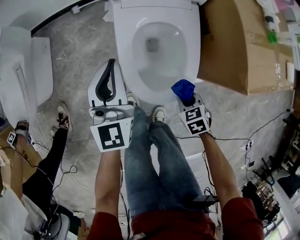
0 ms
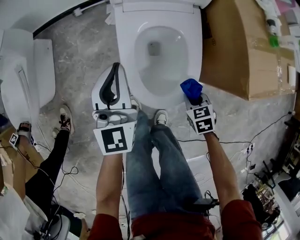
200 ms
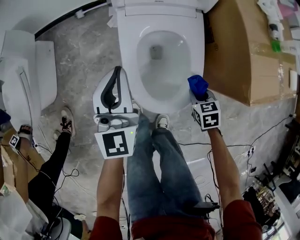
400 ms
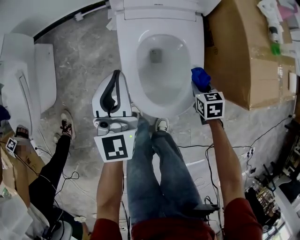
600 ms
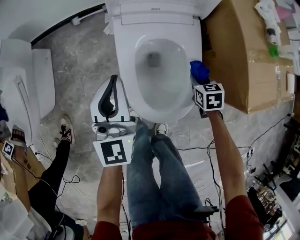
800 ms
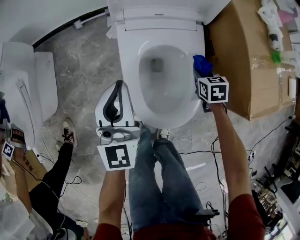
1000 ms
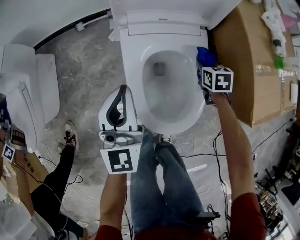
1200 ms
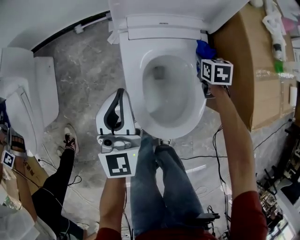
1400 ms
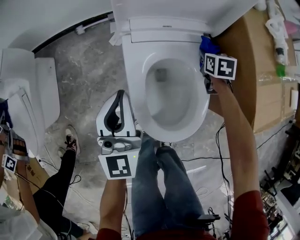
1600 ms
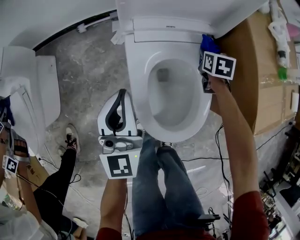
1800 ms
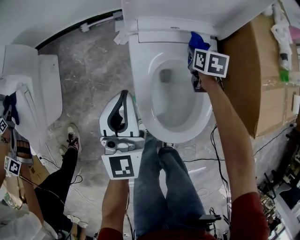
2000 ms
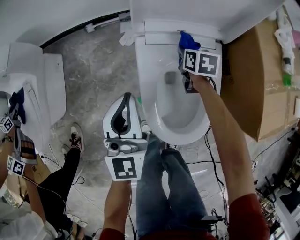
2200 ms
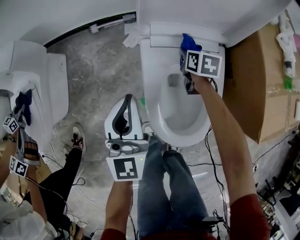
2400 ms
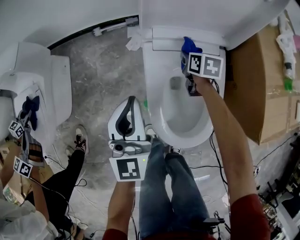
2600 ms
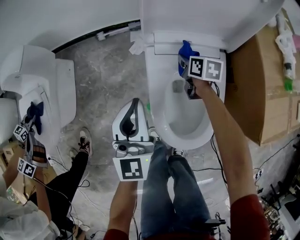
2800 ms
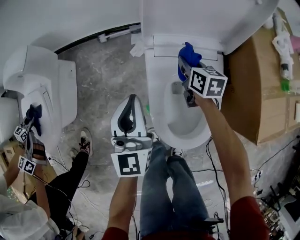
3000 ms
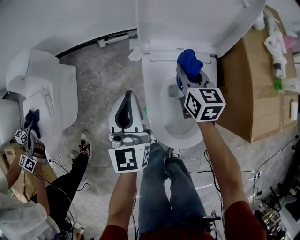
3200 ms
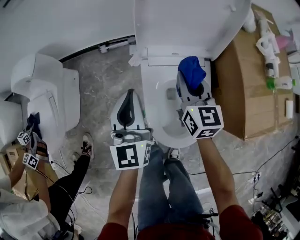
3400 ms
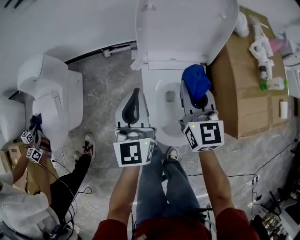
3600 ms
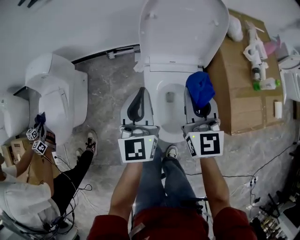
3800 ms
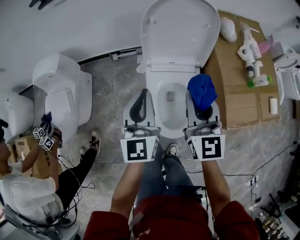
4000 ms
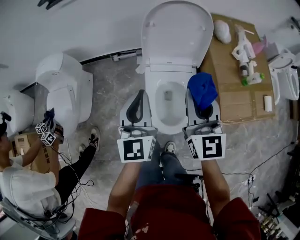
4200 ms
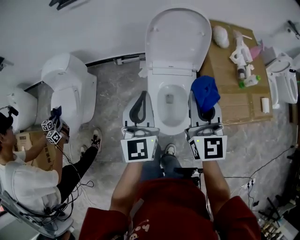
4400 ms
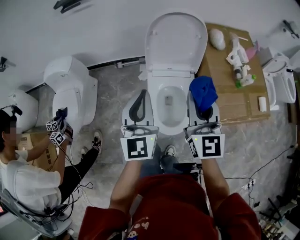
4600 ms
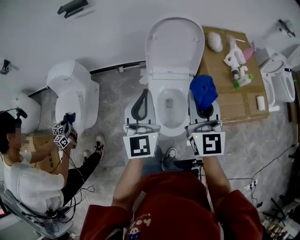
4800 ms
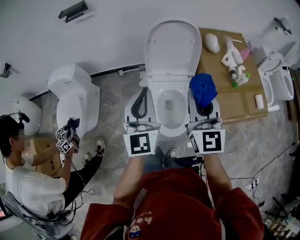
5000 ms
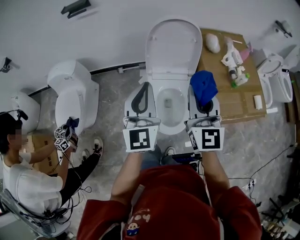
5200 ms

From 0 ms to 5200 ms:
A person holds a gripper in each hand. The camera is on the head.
From 0 ms to 1800 ms: The right gripper heads forward, covering roughly 40 cm, and turns by roughly 30 degrees; the left gripper goes about 10 cm forward.
From 1800 ms to 3400 ms: The left gripper moves upward, approximately 10 cm. The right gripper is displaced upward and to the left by about 30 cm, and angles its fingers upward, by roughly 40 degrees.
From 3400 ms to 5200 ms: The two grippers go approximately 40 cm upward and backward. The right gripper rotates some 30 degrees.

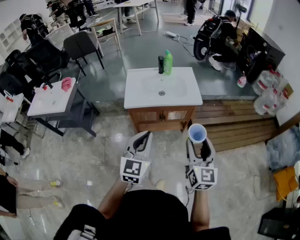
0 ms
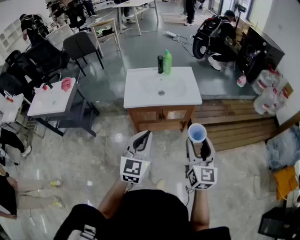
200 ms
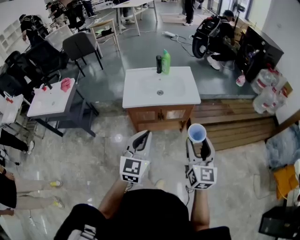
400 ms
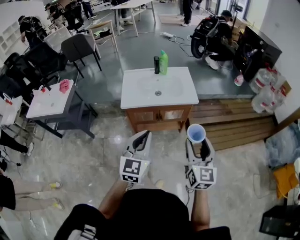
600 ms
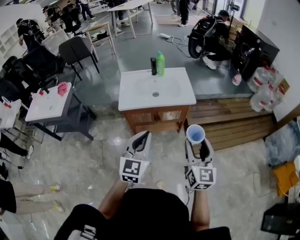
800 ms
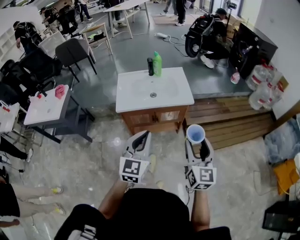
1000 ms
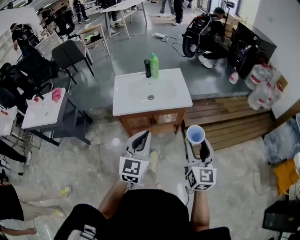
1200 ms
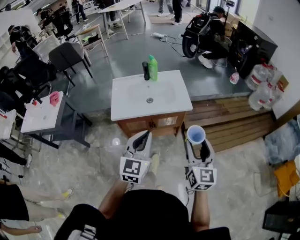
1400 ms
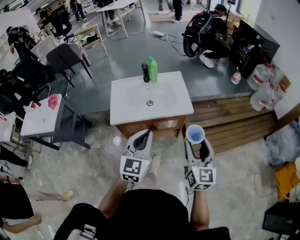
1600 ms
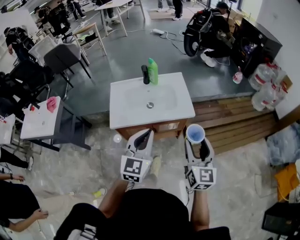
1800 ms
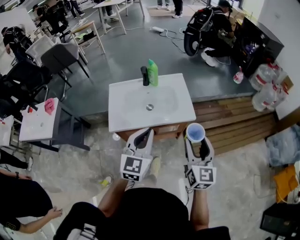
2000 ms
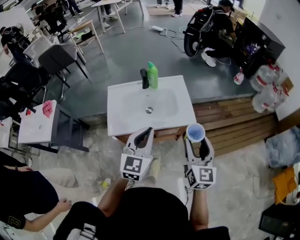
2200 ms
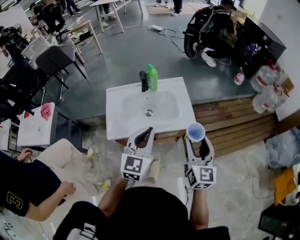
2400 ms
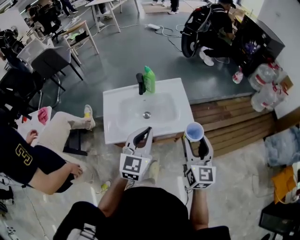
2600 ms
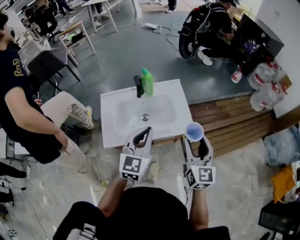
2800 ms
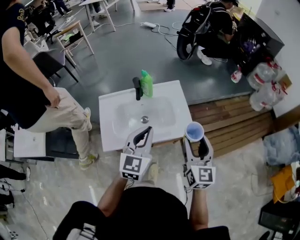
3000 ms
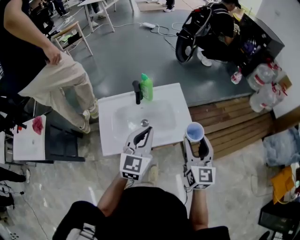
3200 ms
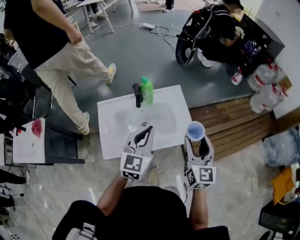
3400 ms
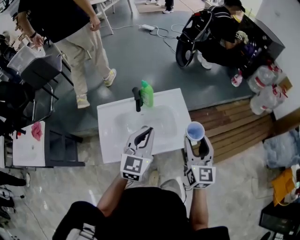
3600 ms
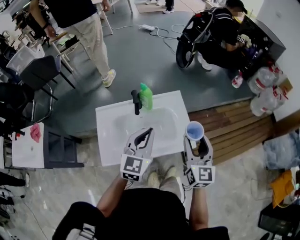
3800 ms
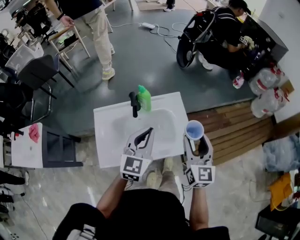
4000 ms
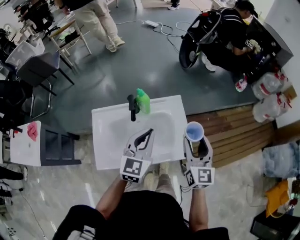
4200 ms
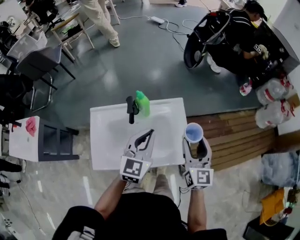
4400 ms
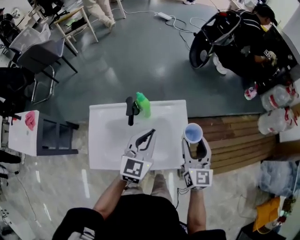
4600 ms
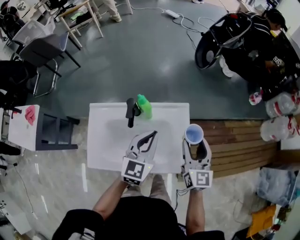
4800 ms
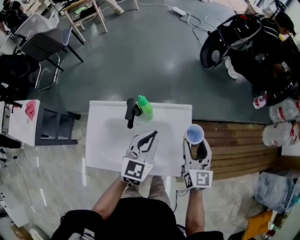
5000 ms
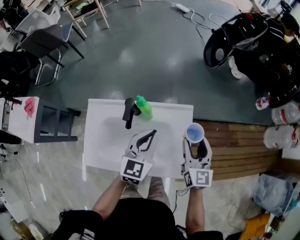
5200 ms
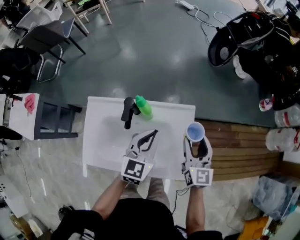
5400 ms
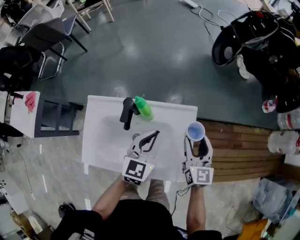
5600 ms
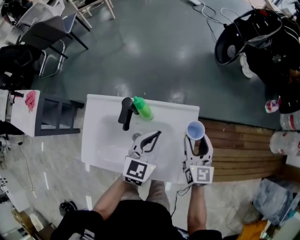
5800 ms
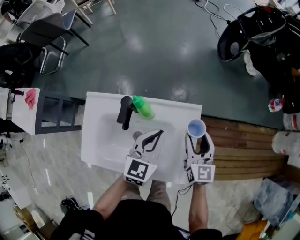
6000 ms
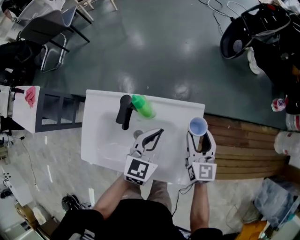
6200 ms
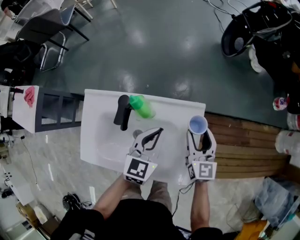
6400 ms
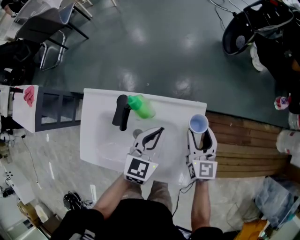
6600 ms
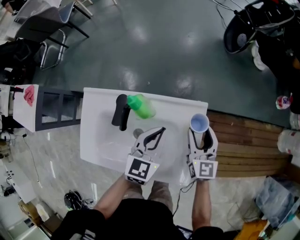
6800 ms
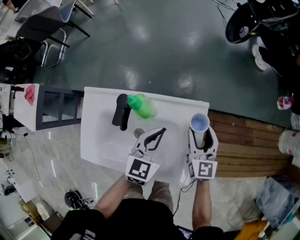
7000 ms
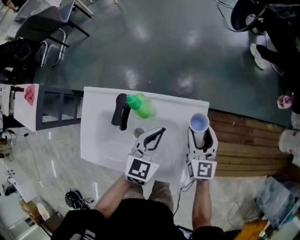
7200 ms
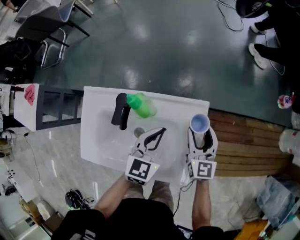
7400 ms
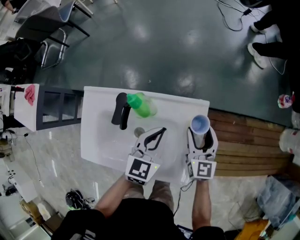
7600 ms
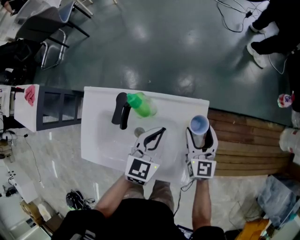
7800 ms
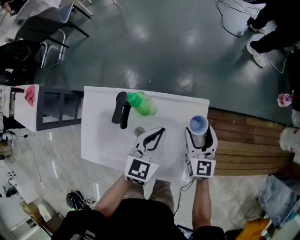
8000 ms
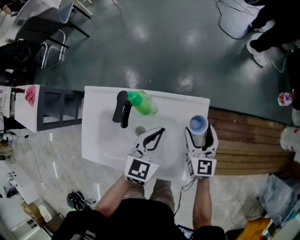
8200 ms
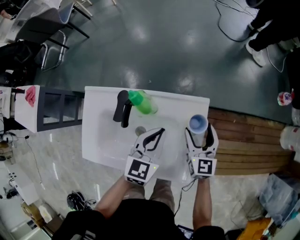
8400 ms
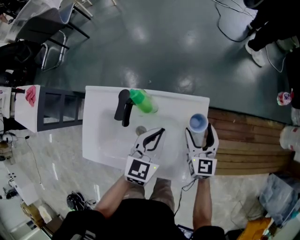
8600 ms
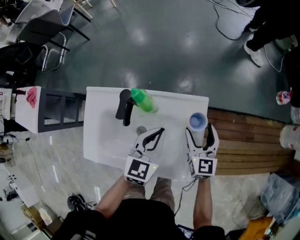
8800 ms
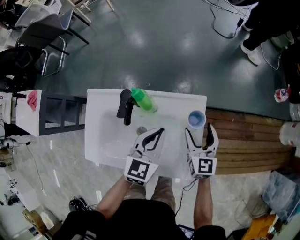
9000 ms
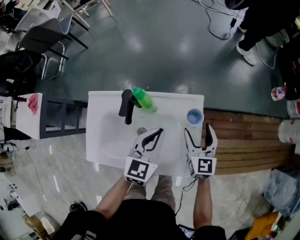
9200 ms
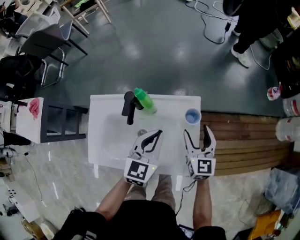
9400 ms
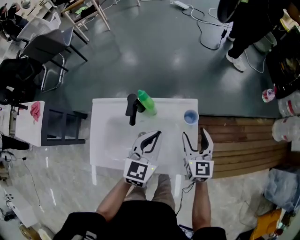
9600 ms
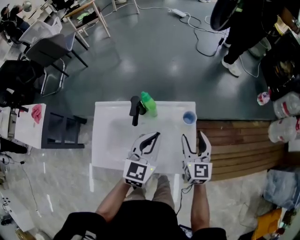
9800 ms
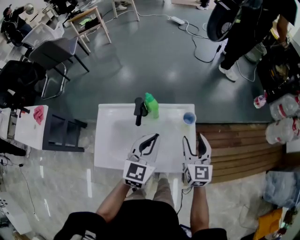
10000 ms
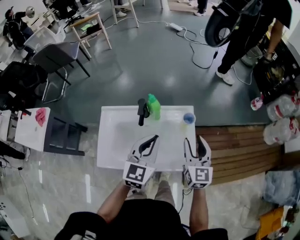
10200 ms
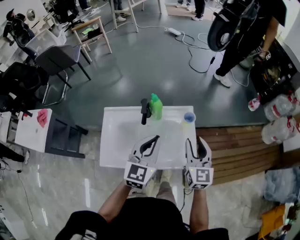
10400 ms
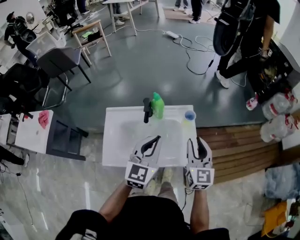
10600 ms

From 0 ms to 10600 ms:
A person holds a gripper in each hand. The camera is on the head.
From 0 ms to 1600 ms: The two grippers go approximately 15 cm forward and to the right.
From 1600 ms to 3000 ms: Both grippers travel together forward, roughly 25 cm.
From 3000 ms to 4600 ms: The grippers both shift forward by approximately 20 cm.
From 4600 ms to 6000 ms: The grippers both shift downward and forward by about 15 cm.
From 6000 ms to 7600 ms: The right gripper shifts approximately 5 cm downward.
From 7600 ms to 9000 ms: The grippers make only small movements.
From 9000 ms to 10600 ms: Both grippers travel together upward and backward, about 25 cm. The right gripper closes; the left gripper rotates approximately 20 degrees.

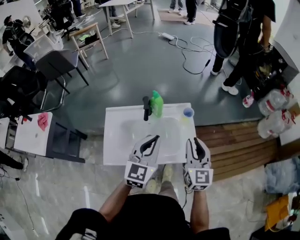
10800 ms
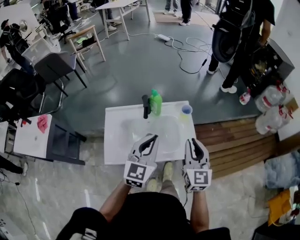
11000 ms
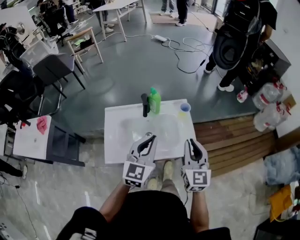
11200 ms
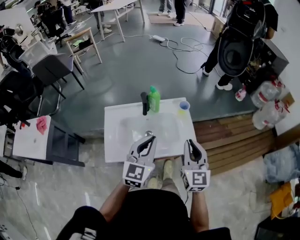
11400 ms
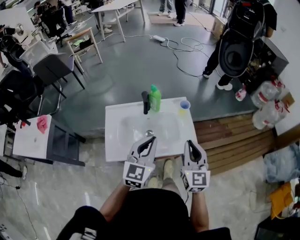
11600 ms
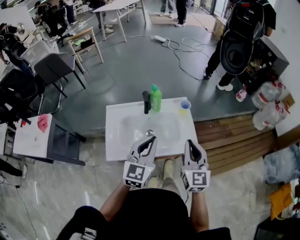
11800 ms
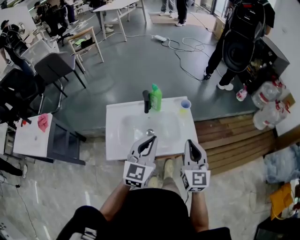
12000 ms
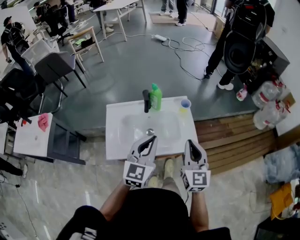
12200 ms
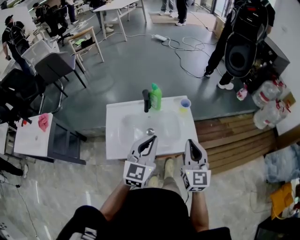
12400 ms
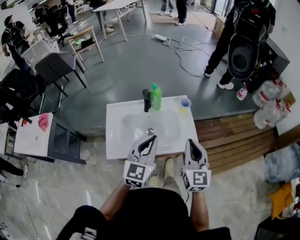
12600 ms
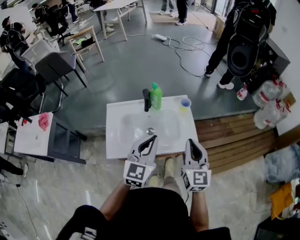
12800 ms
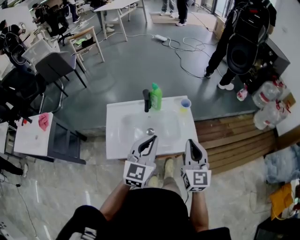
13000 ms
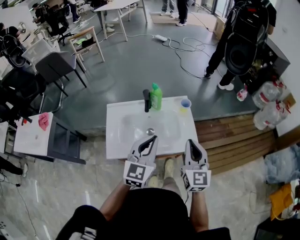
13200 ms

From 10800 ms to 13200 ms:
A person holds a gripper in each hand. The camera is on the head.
From 10800 ms to 12000 ms: Both grippers move backward, some 10 cm.
From 12000 ms to 13200 ms: Both grippers stay put.

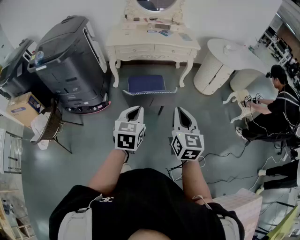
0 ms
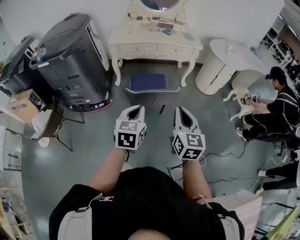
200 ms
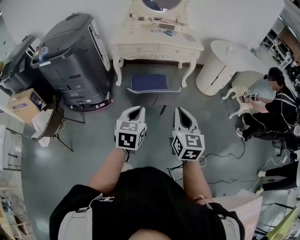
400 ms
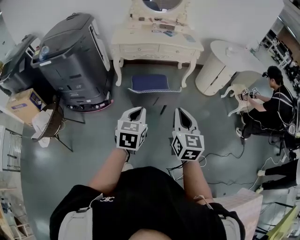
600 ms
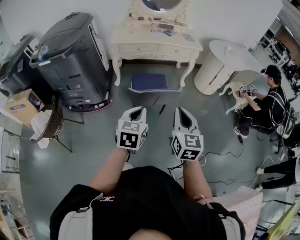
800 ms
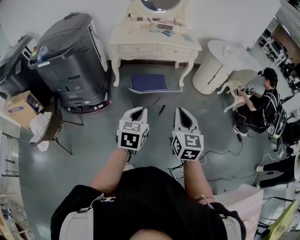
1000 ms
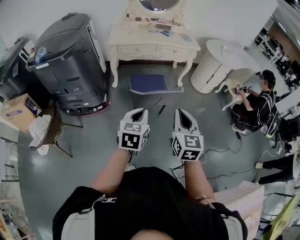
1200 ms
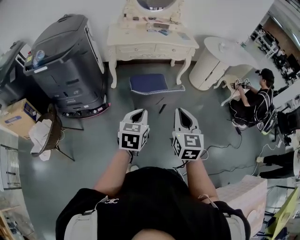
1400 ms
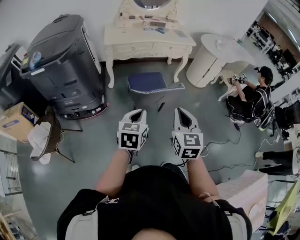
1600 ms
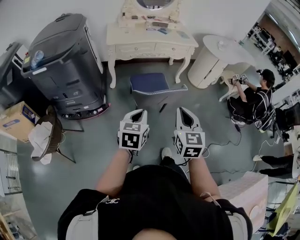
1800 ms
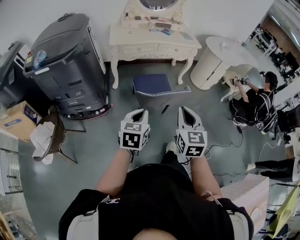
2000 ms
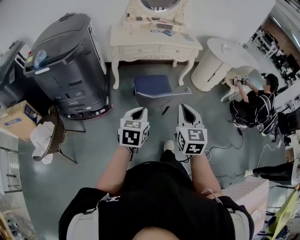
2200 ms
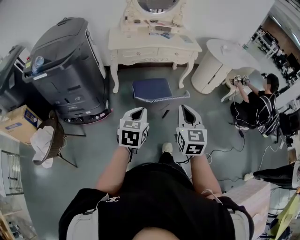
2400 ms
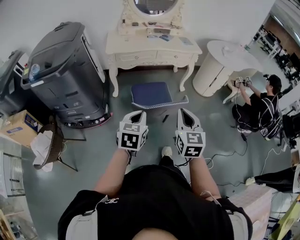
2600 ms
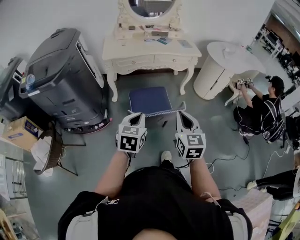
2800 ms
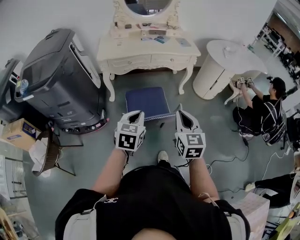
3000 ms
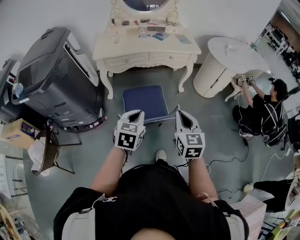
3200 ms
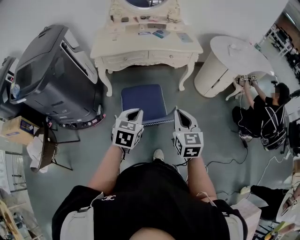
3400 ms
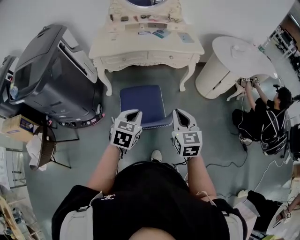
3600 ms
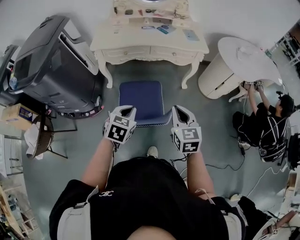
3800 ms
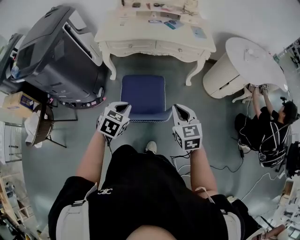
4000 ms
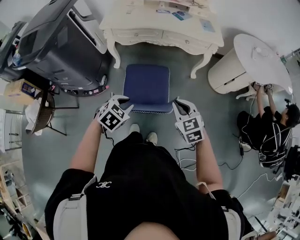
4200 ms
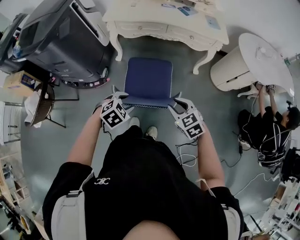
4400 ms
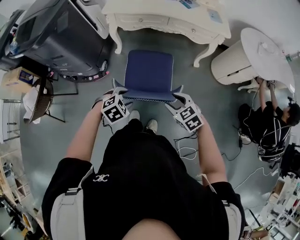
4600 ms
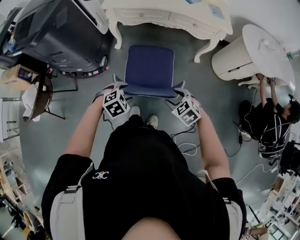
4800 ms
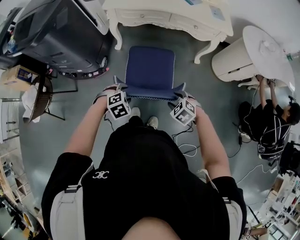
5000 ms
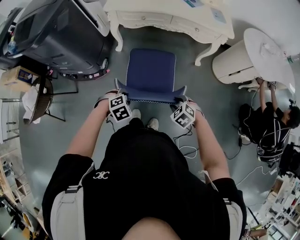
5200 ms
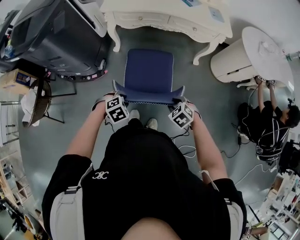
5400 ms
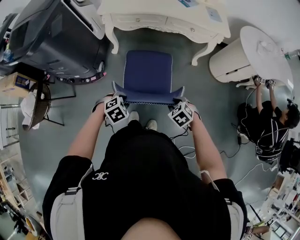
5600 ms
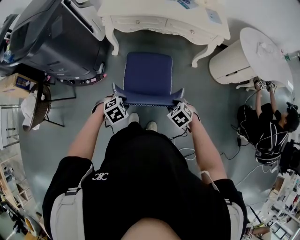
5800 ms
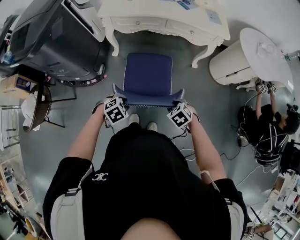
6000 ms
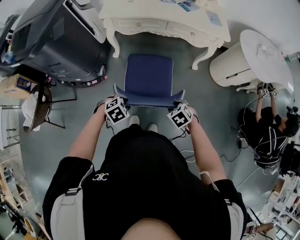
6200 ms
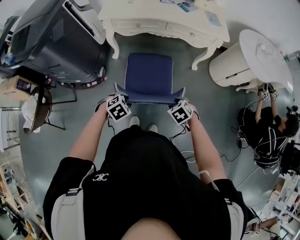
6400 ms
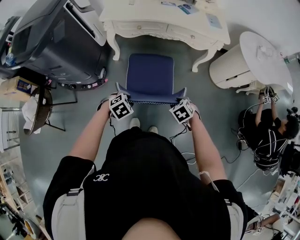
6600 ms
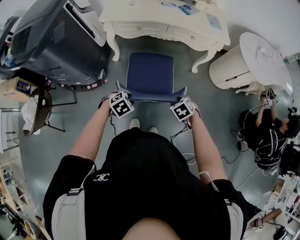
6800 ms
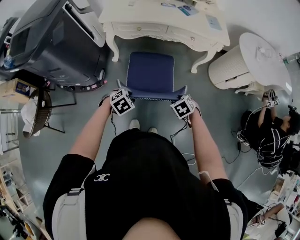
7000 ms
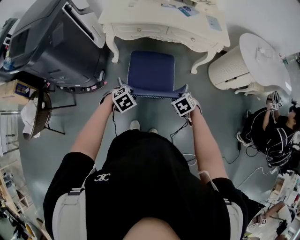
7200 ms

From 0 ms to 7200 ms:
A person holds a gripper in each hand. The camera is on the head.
From 0 ms to 1400 ms: Both grippers travel together to the left, roughly 10 cm.
From 1400 ms to 2800 ms: Both grippers travel together forward, roughly 15 cm.
From 2800 ms to 4400 ms: Both grippers move downward, forward and to the right, about 20 cm. The left gripper points its fingers roughly 30 degrees further downward, and opens up. Meanwhile the right gripper changes its angle by some 50 degrees, and opens.
From 4400 ms to 5800 ms: The right gripper moves downward, roughly 10 cm, and rotates roughly 30 degrees. The left gripper is displaced downward by some 10 cm.
From 5800 ms to 7200 ms: Both grippers move forward, some 10 cm.
